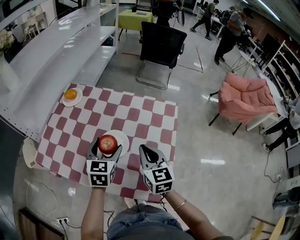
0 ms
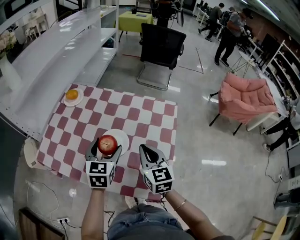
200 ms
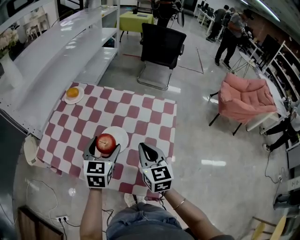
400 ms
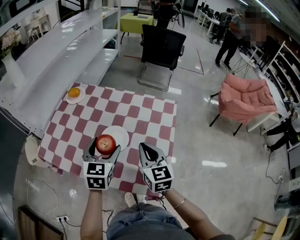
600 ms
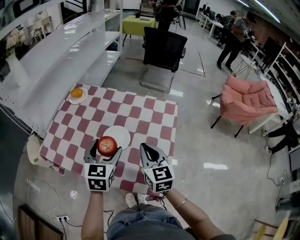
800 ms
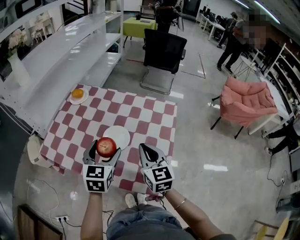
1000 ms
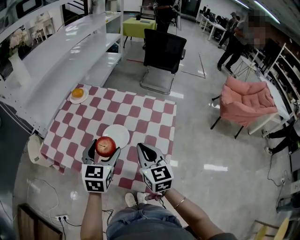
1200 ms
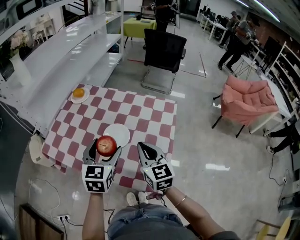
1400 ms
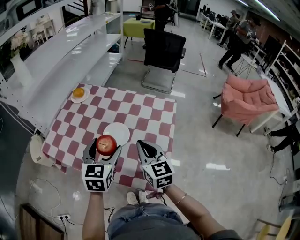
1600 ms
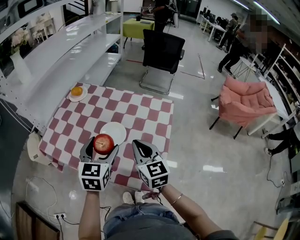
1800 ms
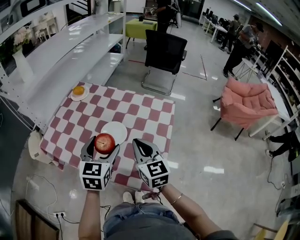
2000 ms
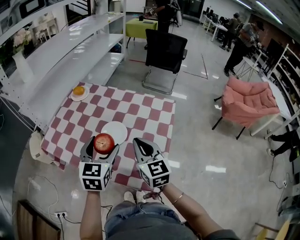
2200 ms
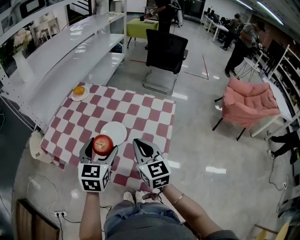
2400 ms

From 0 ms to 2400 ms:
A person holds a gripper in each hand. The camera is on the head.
From 0 ms to 1200 ms: The right gripper moves backward, about 5 cm; the left gripper heads backward and upward, covering approximately 10 cm.
From 1200 ms to 2400 ms: There are only small adjustments of the grippers.

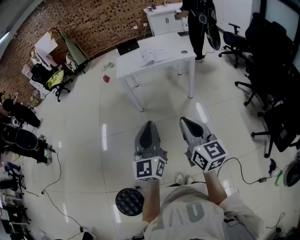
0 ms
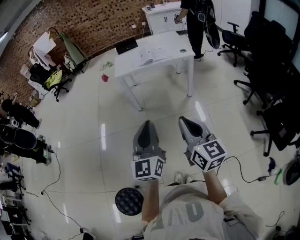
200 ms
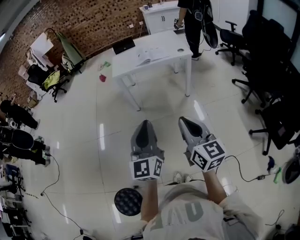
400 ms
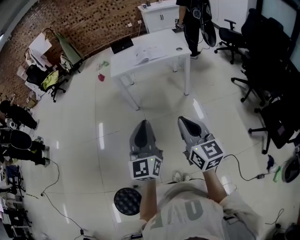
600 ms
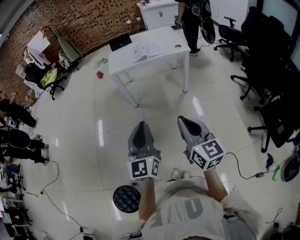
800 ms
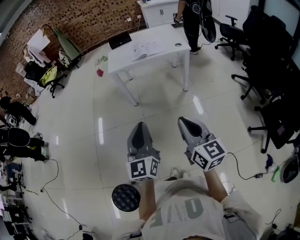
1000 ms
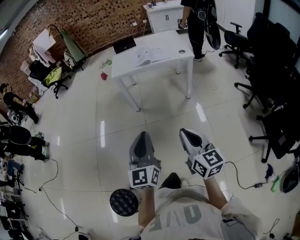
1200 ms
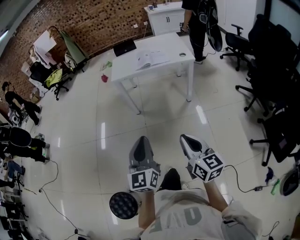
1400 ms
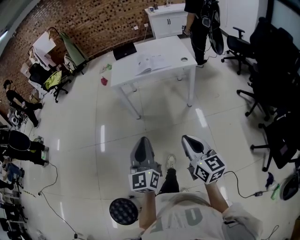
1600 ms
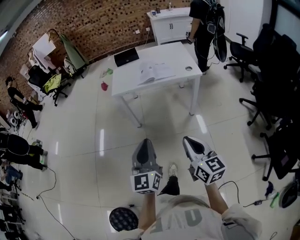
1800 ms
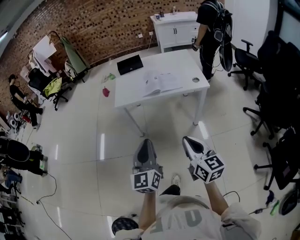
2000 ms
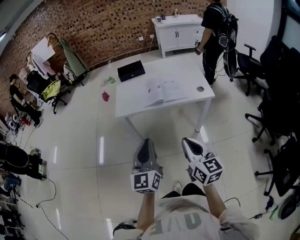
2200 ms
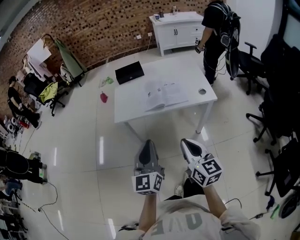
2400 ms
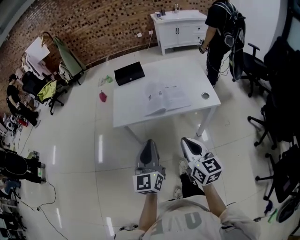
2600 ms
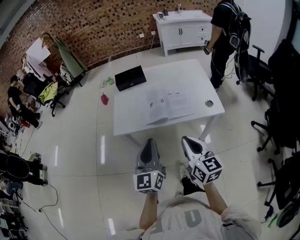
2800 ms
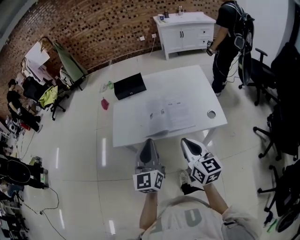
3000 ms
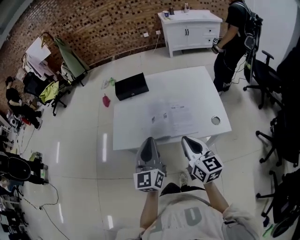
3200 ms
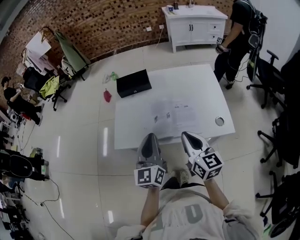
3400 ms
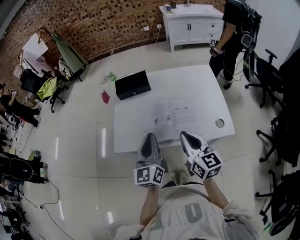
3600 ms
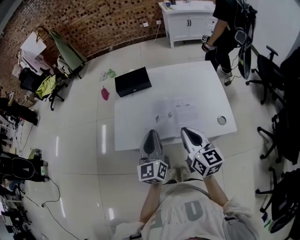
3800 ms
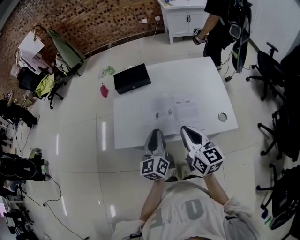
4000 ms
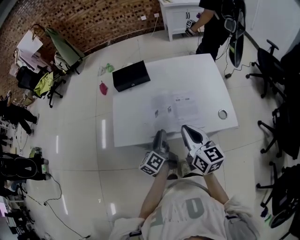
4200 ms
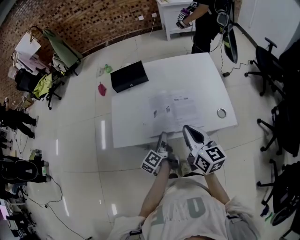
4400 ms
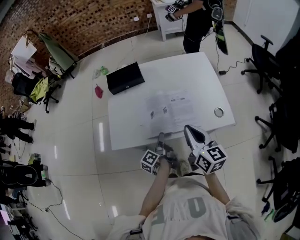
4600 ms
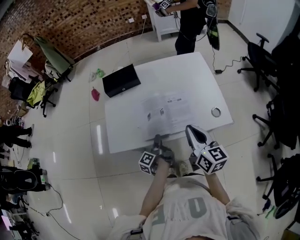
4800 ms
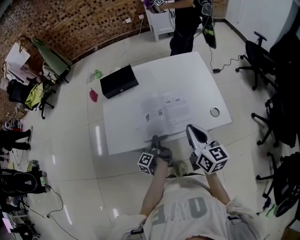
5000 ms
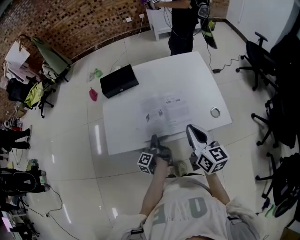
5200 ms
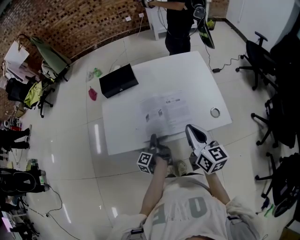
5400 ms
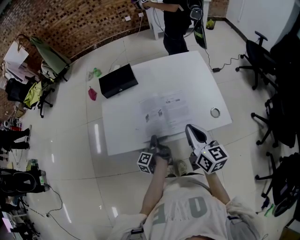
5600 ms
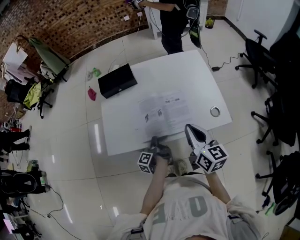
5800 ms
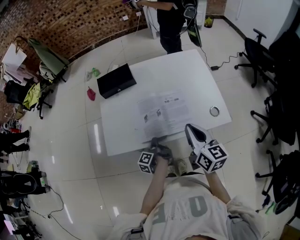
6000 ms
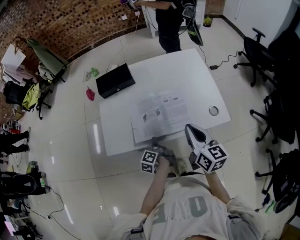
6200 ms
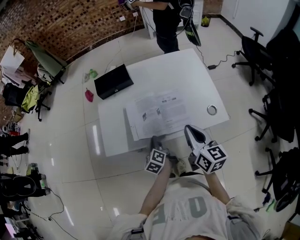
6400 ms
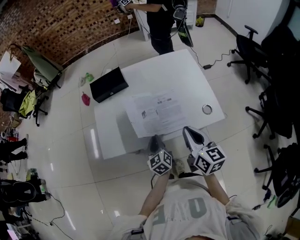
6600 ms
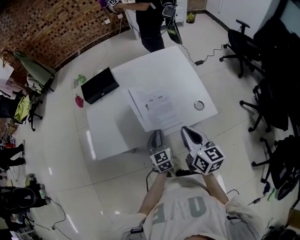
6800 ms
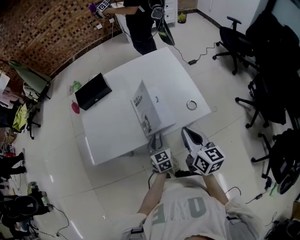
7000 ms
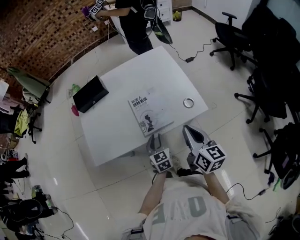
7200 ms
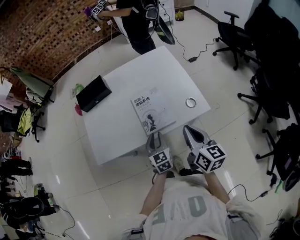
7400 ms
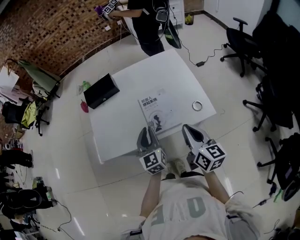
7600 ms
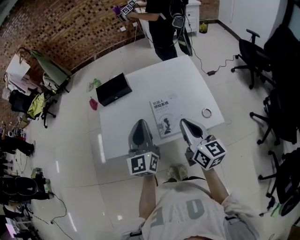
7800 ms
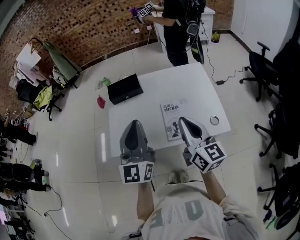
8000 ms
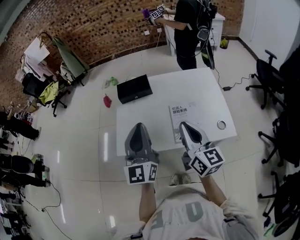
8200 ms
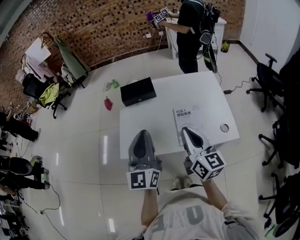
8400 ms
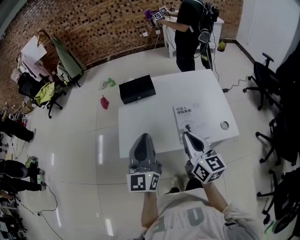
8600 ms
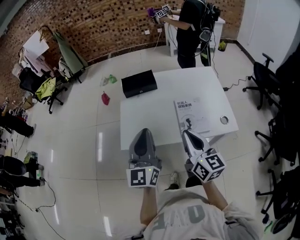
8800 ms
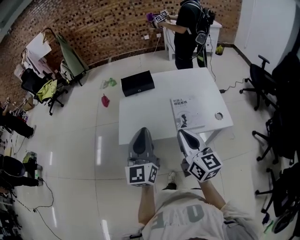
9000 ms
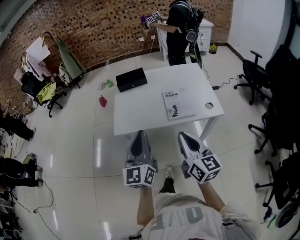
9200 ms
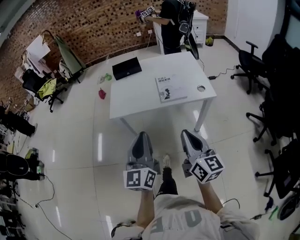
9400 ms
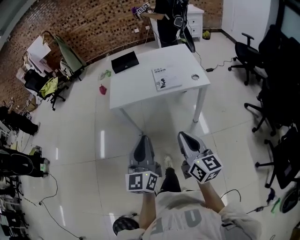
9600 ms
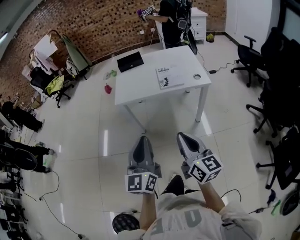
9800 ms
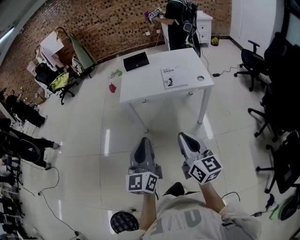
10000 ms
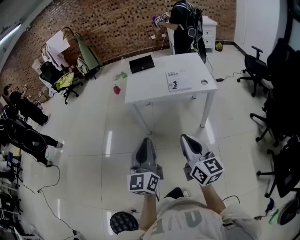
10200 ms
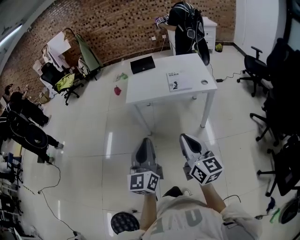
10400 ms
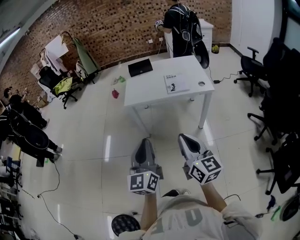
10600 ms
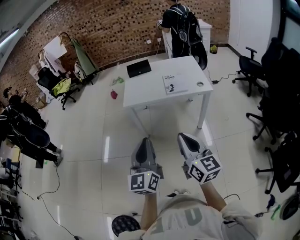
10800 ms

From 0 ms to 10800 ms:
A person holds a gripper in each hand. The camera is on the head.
From 0 ms to 1600 ms: The right gripper moves forward, downward and to the right, about 15 cm. Meanwhile the left gripper shifts approximately 10 cm forward and downward.
From 1600 ms to 3000 ms: The pair of grippers is taken forward, roughly 50 cm.
From 3000 ms to 4600 ms: The left gripper shifts about 25 cm downward and forward, twists some 80 degrees counterclockwise, seen from behind, and opens its fingers, while the right gripper travels forward by approximately 10 cm.
From 4600 ms to 6200 ms: The left gripper moves roughly 5 cm, and closes up.
From 6200 ms to 7800 ms: The left gripper is displaced upward by roughly 30 cm, and rolls clockwise, seen from behind, by some 70 degrees. Meanwhile the right gripper goes roughly 5 cm upward.
From 7800 ms to 9200 ms: The grippers both shift backward and to the left by some 25 cm.
From 9200 ms to 10800 ms: Both grippers move backward, approximately 30 cm.

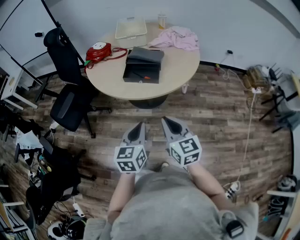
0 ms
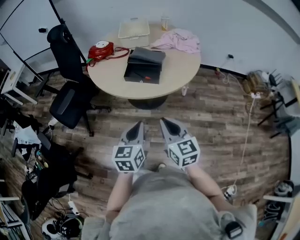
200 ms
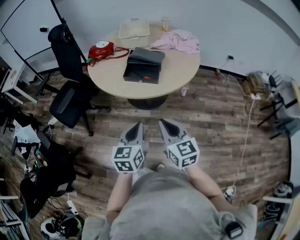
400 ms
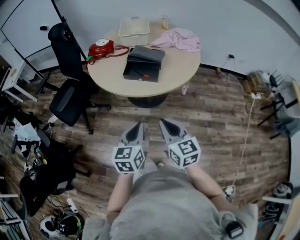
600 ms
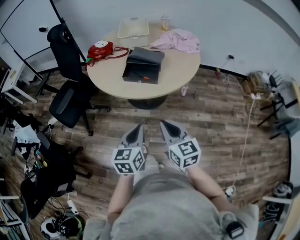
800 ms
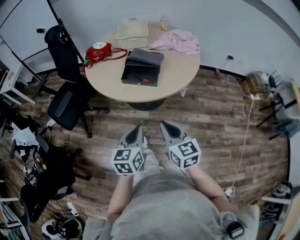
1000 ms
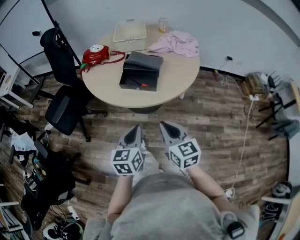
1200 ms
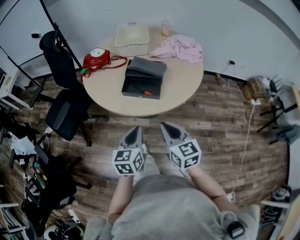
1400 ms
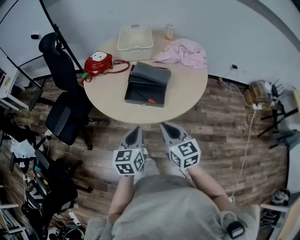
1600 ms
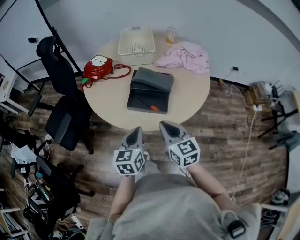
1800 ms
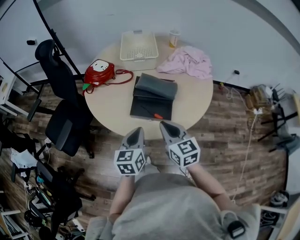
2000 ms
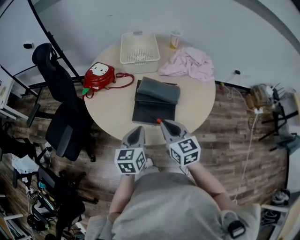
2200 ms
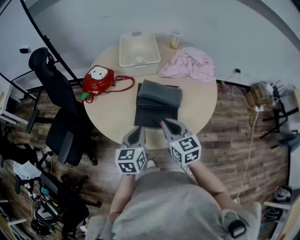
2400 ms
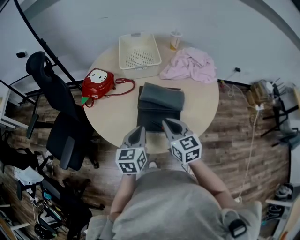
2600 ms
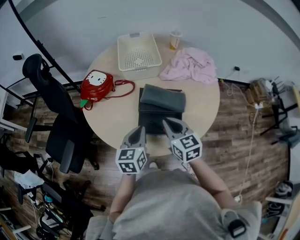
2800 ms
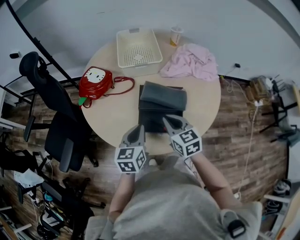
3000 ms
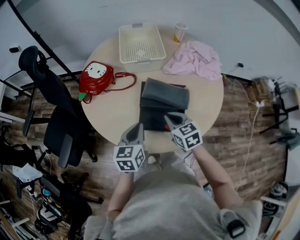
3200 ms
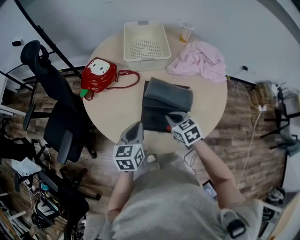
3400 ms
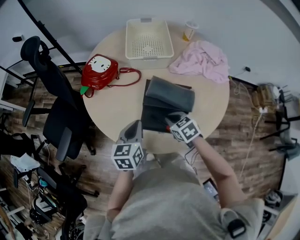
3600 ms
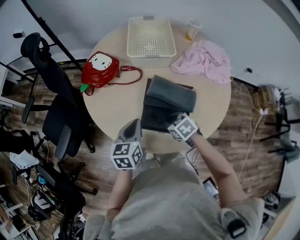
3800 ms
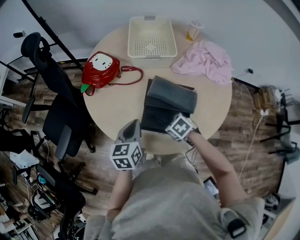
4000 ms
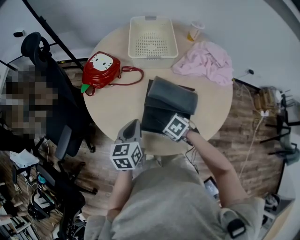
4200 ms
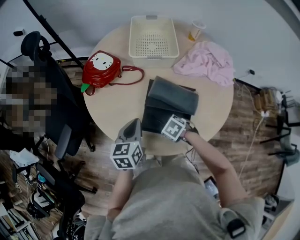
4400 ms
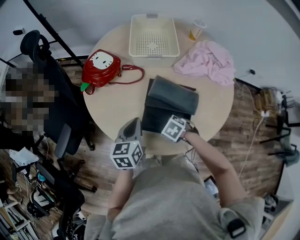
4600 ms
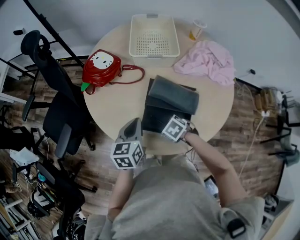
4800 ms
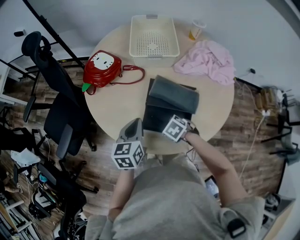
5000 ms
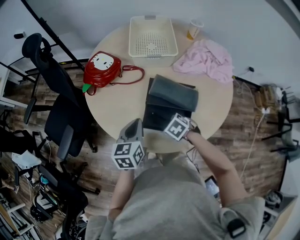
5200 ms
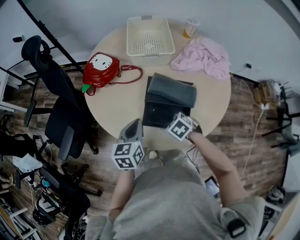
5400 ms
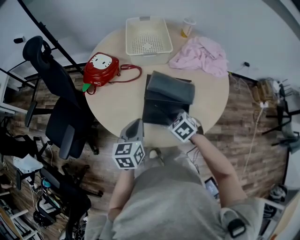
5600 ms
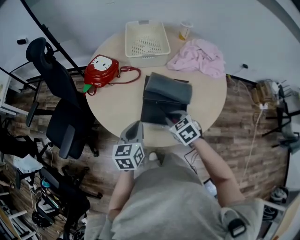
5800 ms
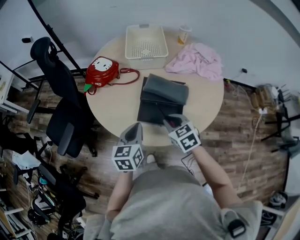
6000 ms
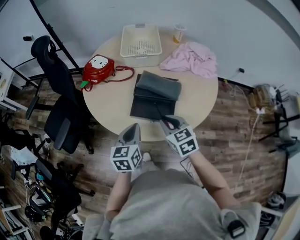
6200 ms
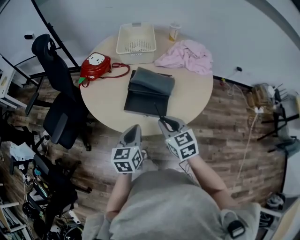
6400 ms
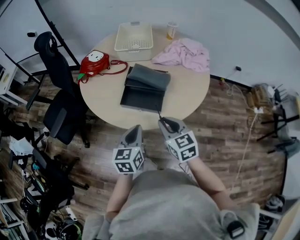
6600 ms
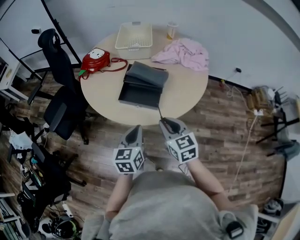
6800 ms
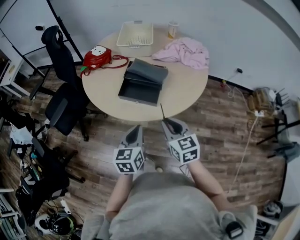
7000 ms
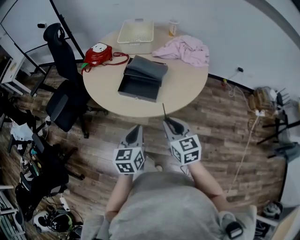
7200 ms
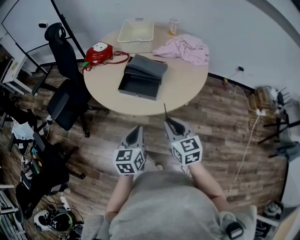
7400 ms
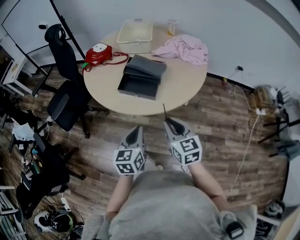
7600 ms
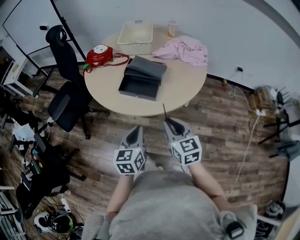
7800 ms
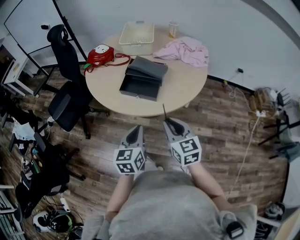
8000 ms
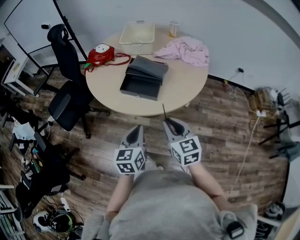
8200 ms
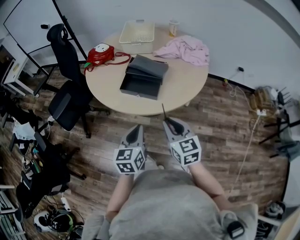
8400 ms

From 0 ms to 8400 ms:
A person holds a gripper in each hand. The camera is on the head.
From 0 ms to 1400 ms: Both grippers move forward, some 10 cm.
From 1400 ms to 2800 ms: Both grippers travel together forward, about 25 cm.
From 2800 ms to 4200 ms: The left gripper changes place by about 5 cm. Meanwhile the right gripper travels downward by approximately 20 cm, tilts its fingers approximately 50 degrees downward, and opens up.
From 4200 ms to 5600 ms: The right gripper heads upward, covering approximately 5 cm, and turns by roughly 20 degrees.
From 5600 ms to 7000 ms: The left gripper moves backward and to the right, approximately 25 cm. Meanwhile the right gripper travels backward, upward and to the right by approximately 25 cm, and tilts its fingers approximately 40 degrees upward.
From 7000 ms to 8400 ms: The grippers stay close to where they were, moving slightly.

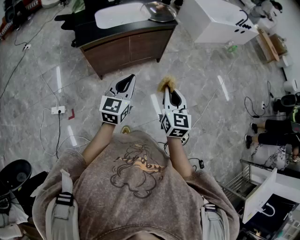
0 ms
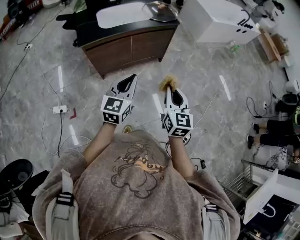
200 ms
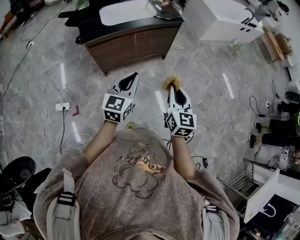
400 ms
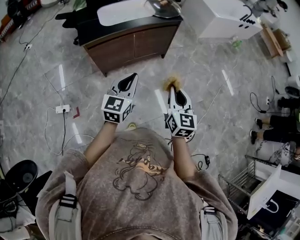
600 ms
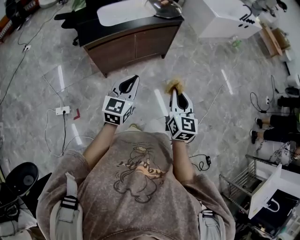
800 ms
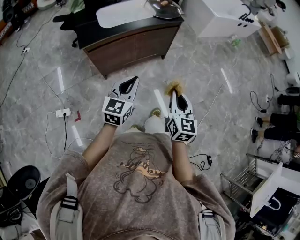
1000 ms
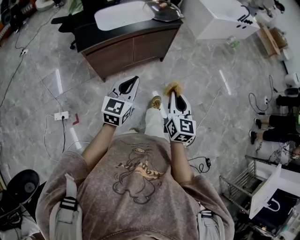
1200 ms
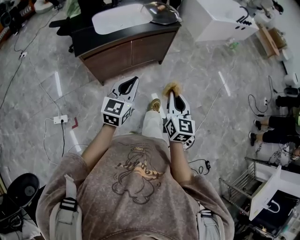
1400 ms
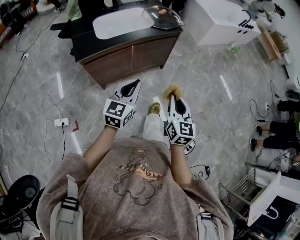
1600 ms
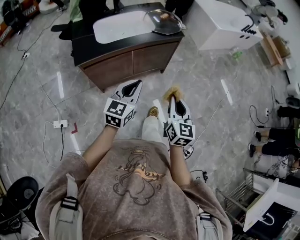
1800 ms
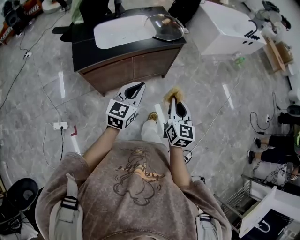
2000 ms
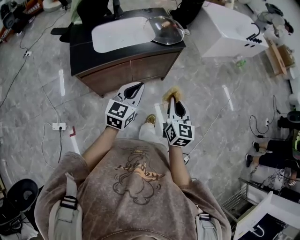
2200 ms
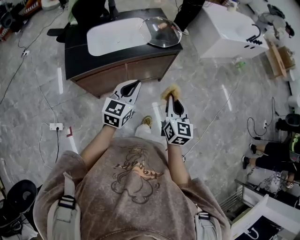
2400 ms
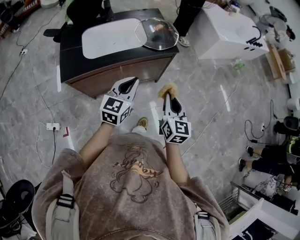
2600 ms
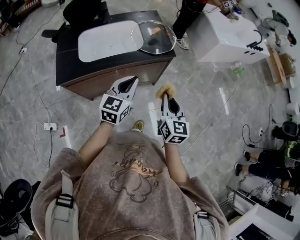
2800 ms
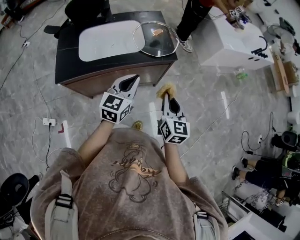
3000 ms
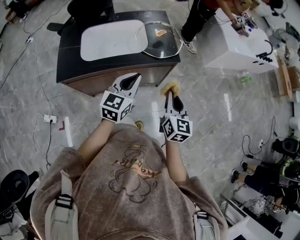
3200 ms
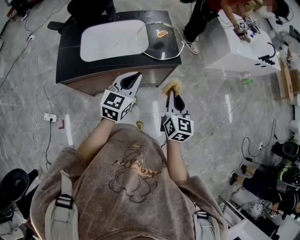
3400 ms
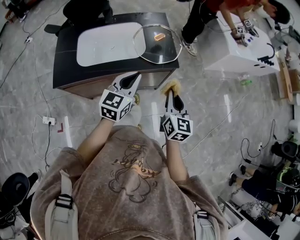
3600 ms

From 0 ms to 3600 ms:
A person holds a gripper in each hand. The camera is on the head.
From 0 ms to 1800 ms: The two grippers go some 15 cm forward.
From 1800 ms to 3600 ms: The two grippers go roughly 35 cm forward.
